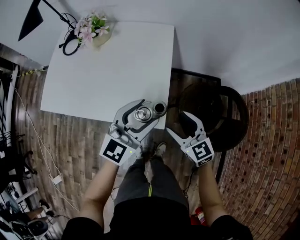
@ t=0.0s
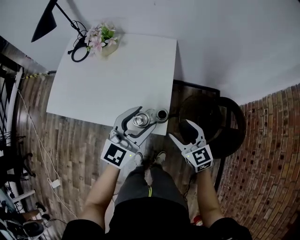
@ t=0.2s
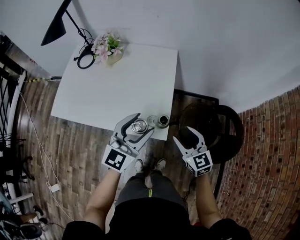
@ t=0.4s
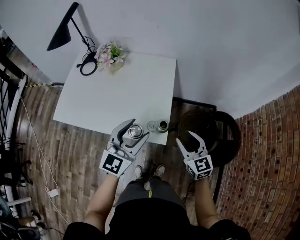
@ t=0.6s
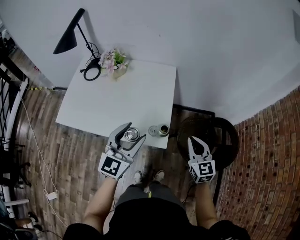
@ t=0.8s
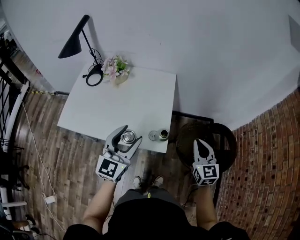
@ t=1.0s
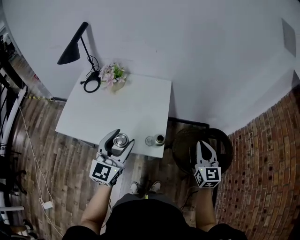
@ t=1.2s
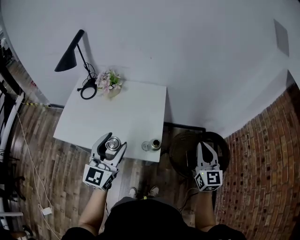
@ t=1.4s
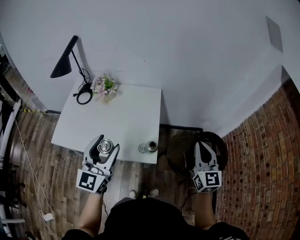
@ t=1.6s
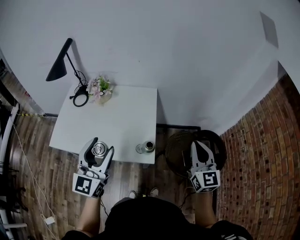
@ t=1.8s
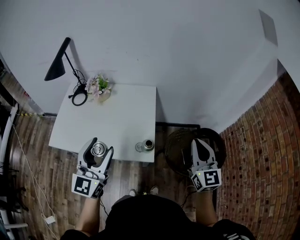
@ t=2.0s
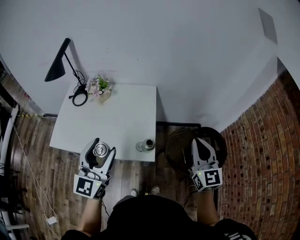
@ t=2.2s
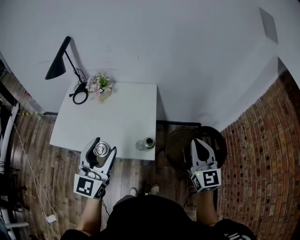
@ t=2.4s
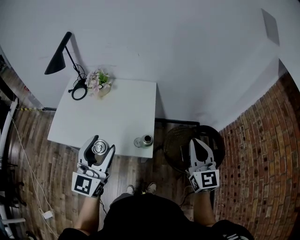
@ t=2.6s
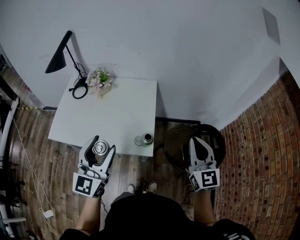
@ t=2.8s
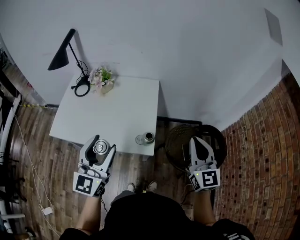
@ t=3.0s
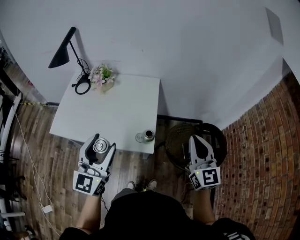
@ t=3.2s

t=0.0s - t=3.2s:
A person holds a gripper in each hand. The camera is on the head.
t=0.0s - t=1.6s: The left gripper goes approximately 20 cm upward and to the left, and rotates approximately 20 degrees; the right gripper shifts some 25 cm upward and to the right, turns by approximately 40 degrees, and closes its fingers.
t=1.6s - t=3.2s: The grippers make only small movements.

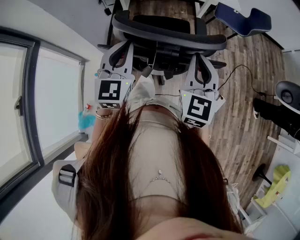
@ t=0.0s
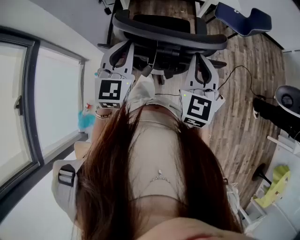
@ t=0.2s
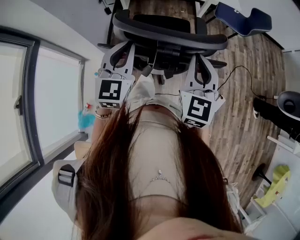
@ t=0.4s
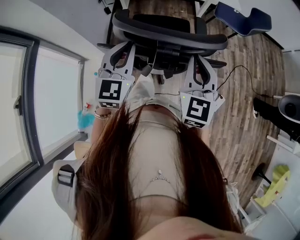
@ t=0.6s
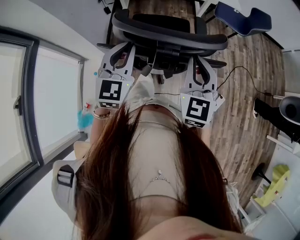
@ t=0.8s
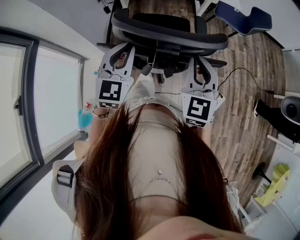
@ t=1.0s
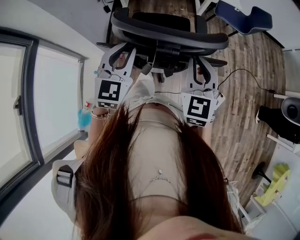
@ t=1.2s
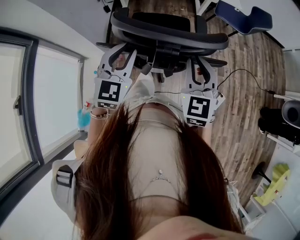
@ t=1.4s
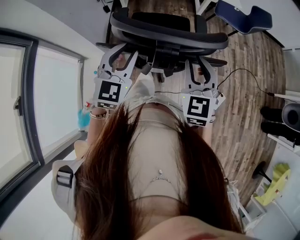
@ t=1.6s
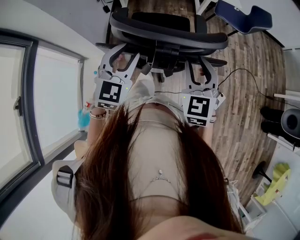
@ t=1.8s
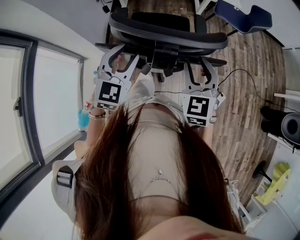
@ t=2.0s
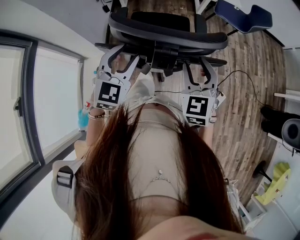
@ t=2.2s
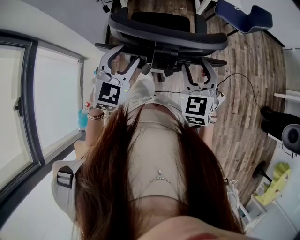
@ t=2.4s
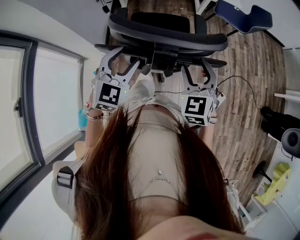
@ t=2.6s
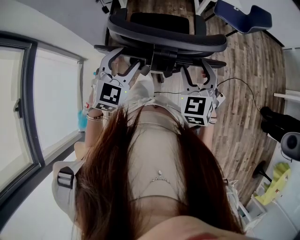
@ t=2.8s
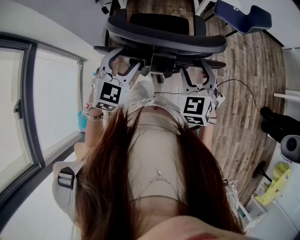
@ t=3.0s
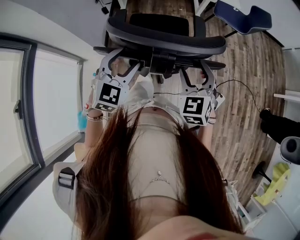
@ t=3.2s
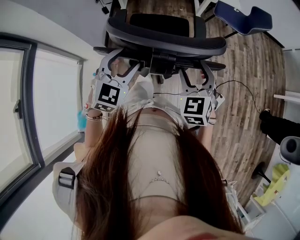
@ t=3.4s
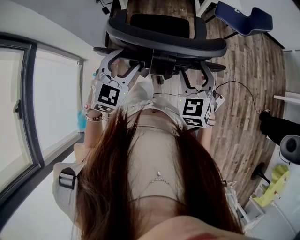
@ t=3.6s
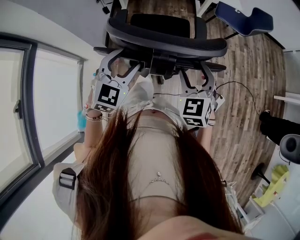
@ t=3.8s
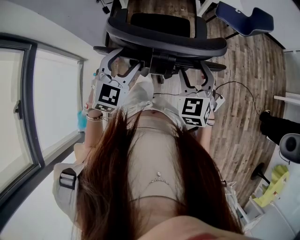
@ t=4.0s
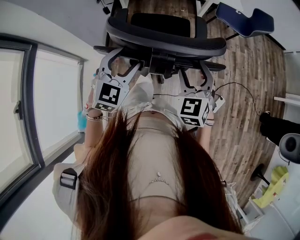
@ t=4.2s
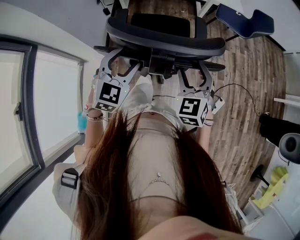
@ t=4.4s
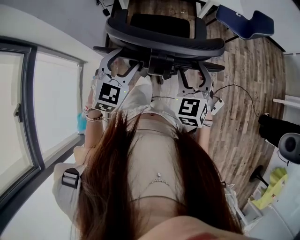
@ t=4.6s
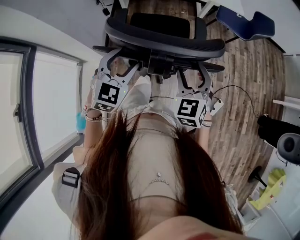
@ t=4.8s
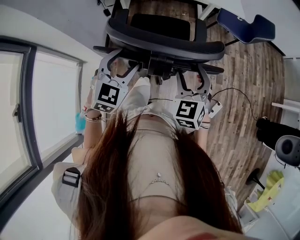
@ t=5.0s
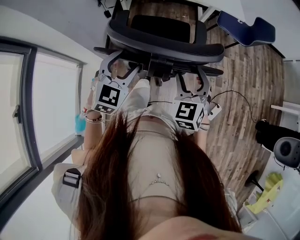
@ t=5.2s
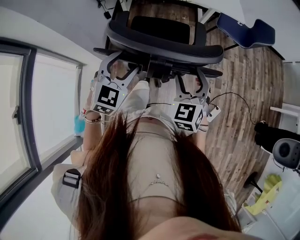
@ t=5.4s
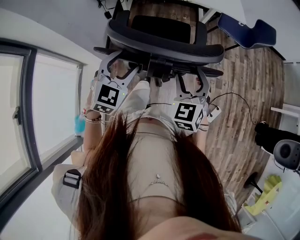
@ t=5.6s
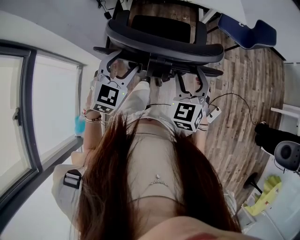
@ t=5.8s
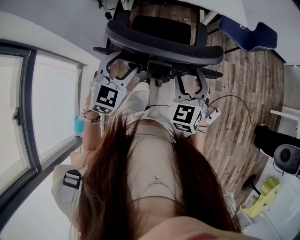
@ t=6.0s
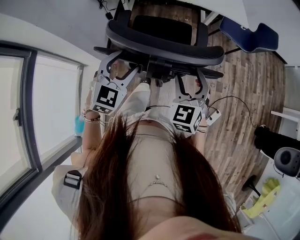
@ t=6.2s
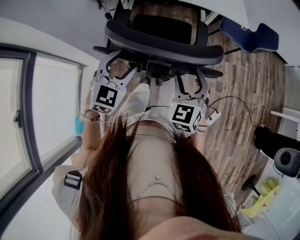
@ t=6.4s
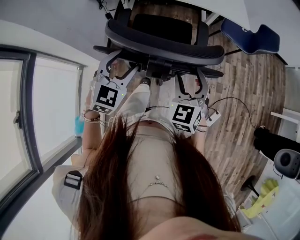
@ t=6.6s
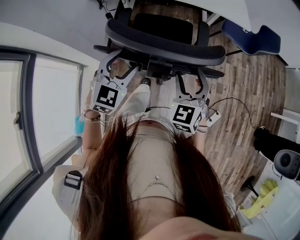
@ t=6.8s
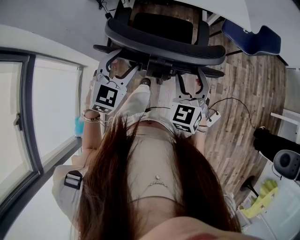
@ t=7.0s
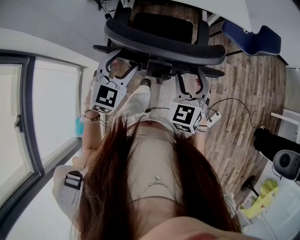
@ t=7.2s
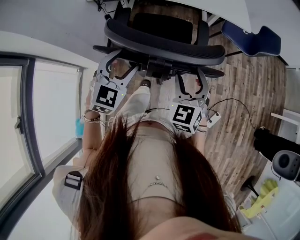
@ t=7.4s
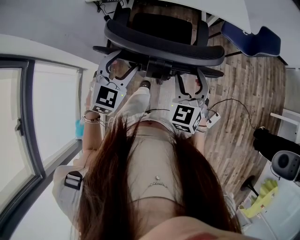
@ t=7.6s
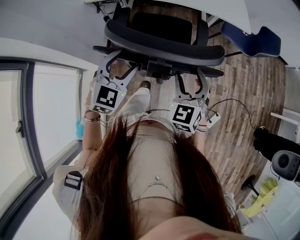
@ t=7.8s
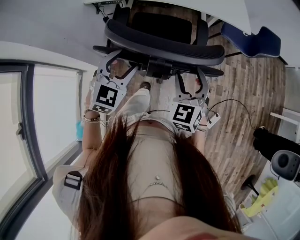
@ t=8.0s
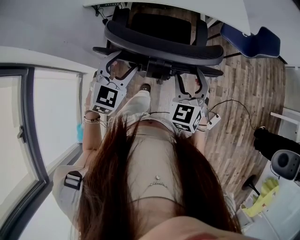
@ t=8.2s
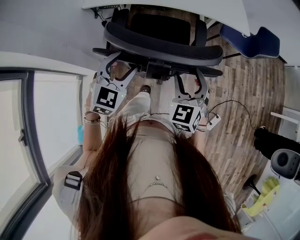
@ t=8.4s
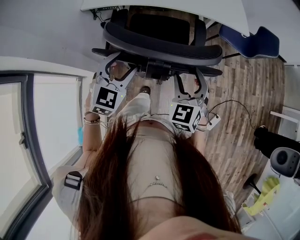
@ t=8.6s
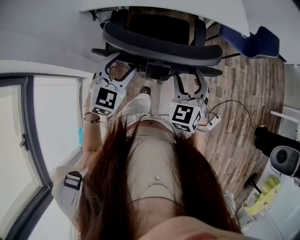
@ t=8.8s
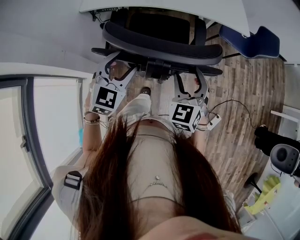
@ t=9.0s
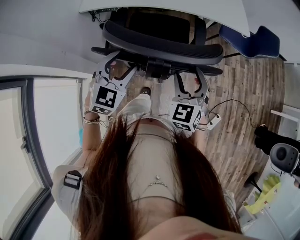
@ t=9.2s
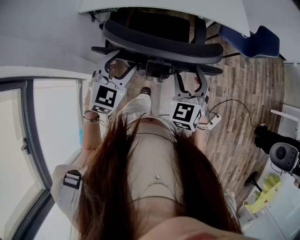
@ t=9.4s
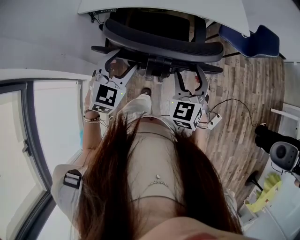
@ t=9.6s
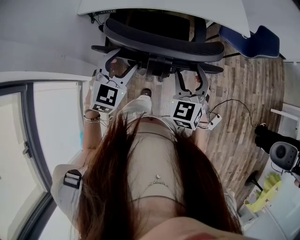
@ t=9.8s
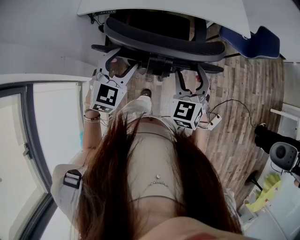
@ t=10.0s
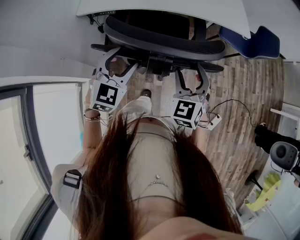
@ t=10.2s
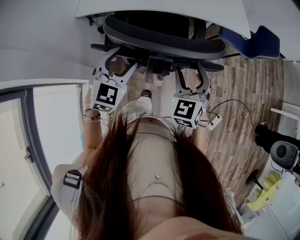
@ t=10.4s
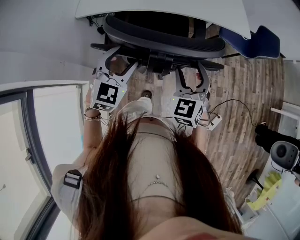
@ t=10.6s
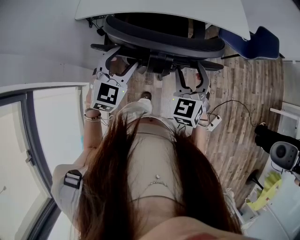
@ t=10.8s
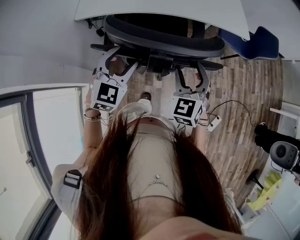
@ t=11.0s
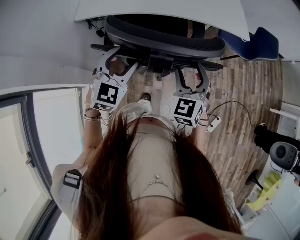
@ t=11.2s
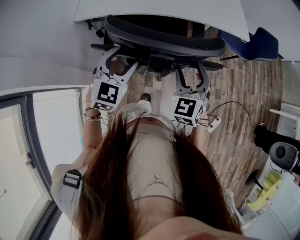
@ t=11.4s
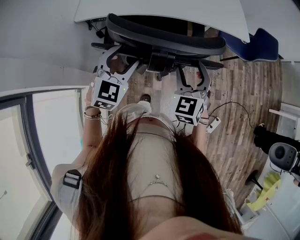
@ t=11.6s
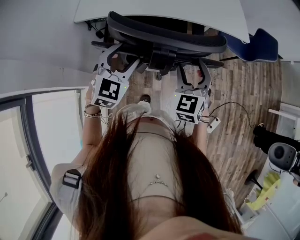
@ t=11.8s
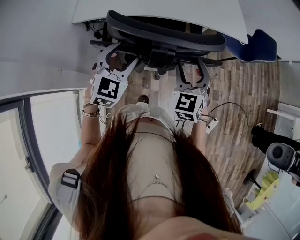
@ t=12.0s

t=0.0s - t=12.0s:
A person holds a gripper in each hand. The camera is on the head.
t=0.0s - t=1.6s: The grippers make only small movements.
t=1.6s - t=3.0s: The right gripper opens. Meanwhile the left gripper opens up.
t=3.0s - t=4.4s: The grippers make only small movements.
t=4.4s - t=6.0s: The two grippers go about 5 cm forward.
t=6.0s - t=7.6s: Both grippers travel together forward, roughly 5 cm.
t=7.6s - t=9.0s: Both grippers travel together forward, some 5 cm.
t=9.0s - t=10.4s: Both grippers move forward, about 5 cm.
t=10.4s - t=12.0s: Both grippers move forward, roughly 5 cm.

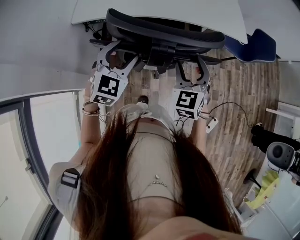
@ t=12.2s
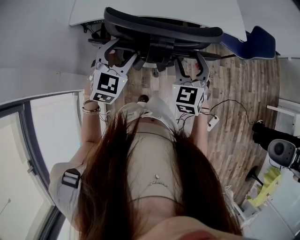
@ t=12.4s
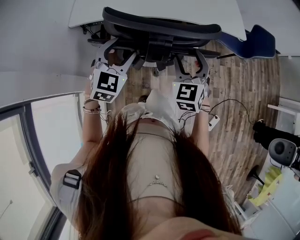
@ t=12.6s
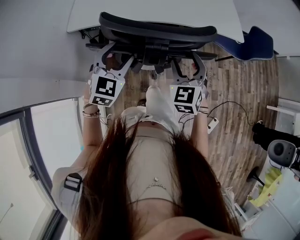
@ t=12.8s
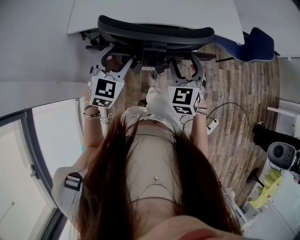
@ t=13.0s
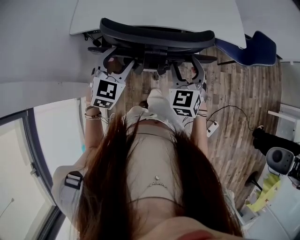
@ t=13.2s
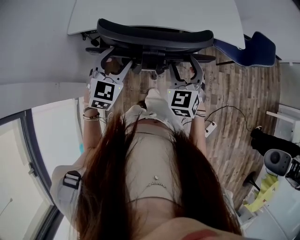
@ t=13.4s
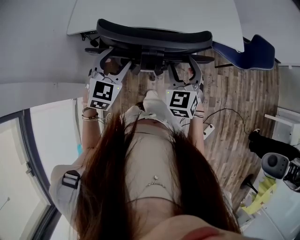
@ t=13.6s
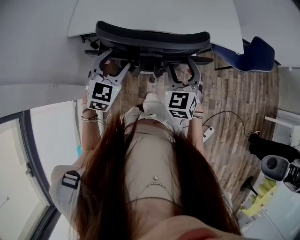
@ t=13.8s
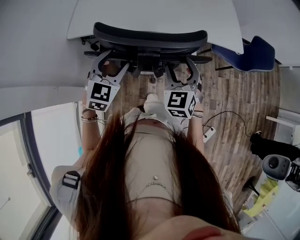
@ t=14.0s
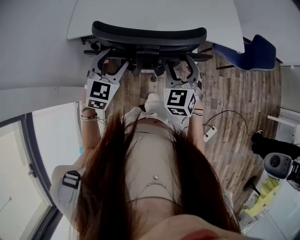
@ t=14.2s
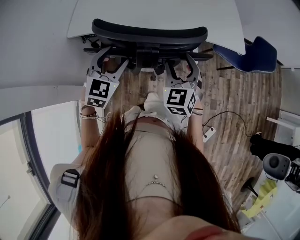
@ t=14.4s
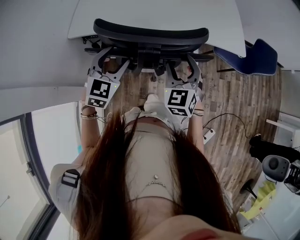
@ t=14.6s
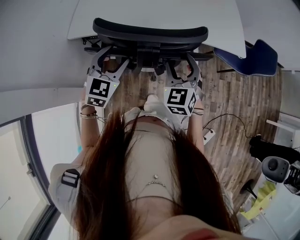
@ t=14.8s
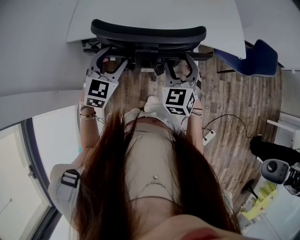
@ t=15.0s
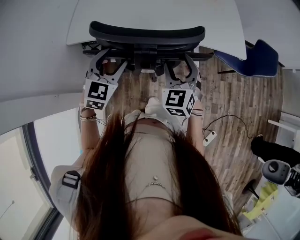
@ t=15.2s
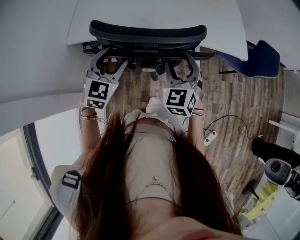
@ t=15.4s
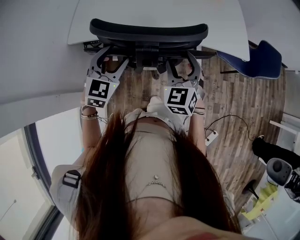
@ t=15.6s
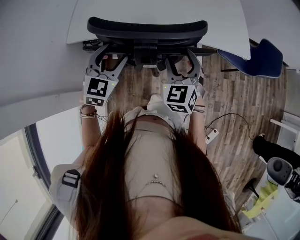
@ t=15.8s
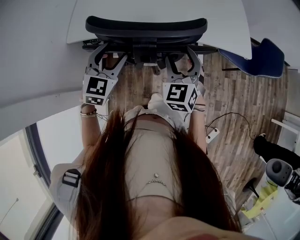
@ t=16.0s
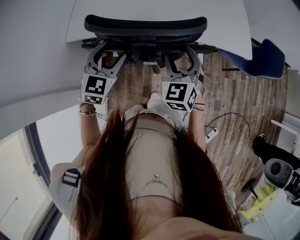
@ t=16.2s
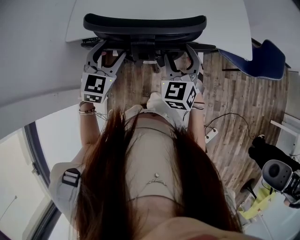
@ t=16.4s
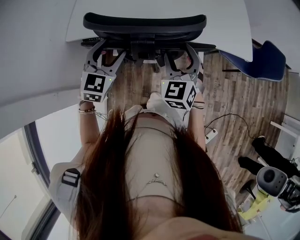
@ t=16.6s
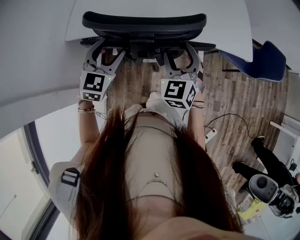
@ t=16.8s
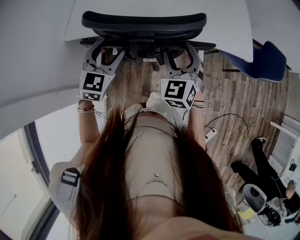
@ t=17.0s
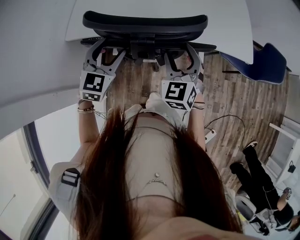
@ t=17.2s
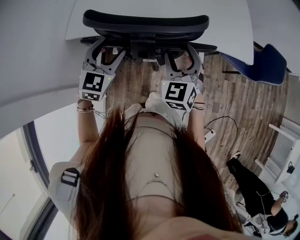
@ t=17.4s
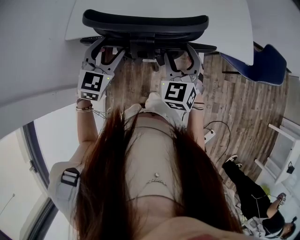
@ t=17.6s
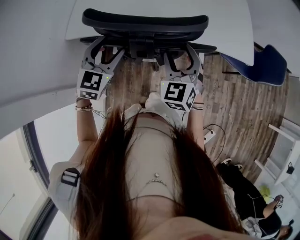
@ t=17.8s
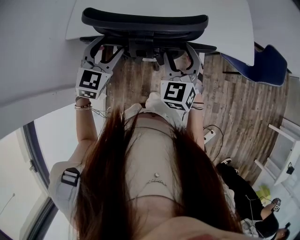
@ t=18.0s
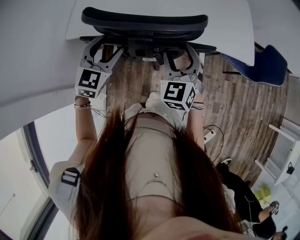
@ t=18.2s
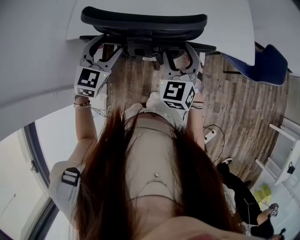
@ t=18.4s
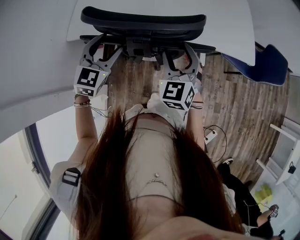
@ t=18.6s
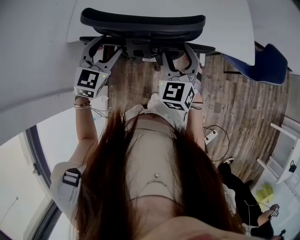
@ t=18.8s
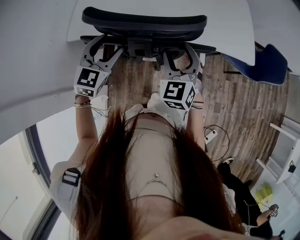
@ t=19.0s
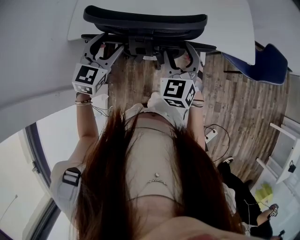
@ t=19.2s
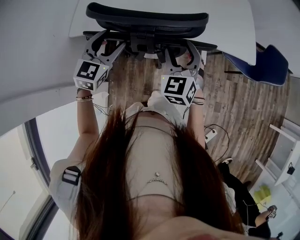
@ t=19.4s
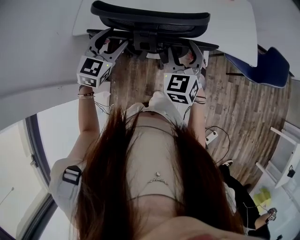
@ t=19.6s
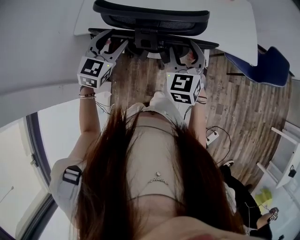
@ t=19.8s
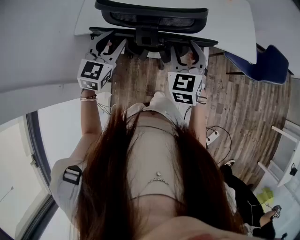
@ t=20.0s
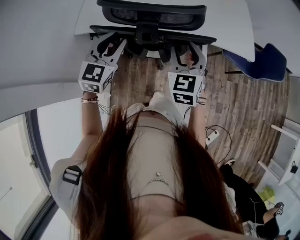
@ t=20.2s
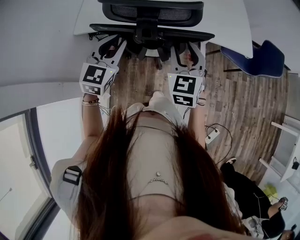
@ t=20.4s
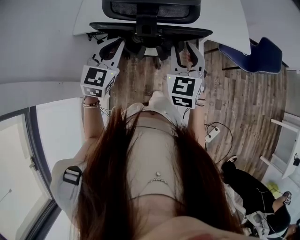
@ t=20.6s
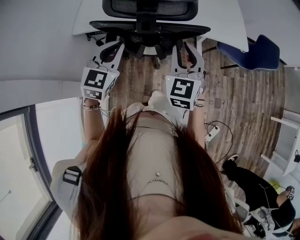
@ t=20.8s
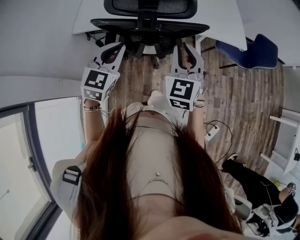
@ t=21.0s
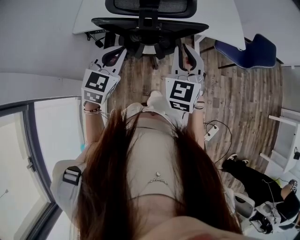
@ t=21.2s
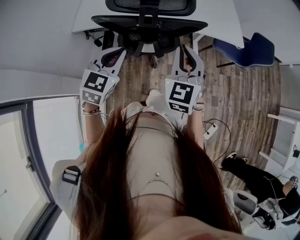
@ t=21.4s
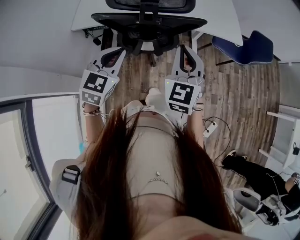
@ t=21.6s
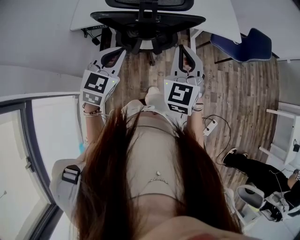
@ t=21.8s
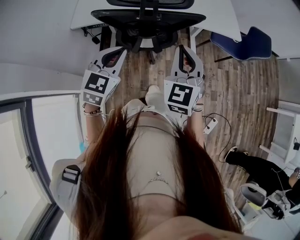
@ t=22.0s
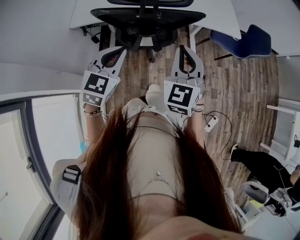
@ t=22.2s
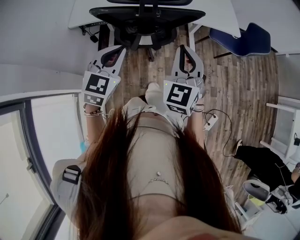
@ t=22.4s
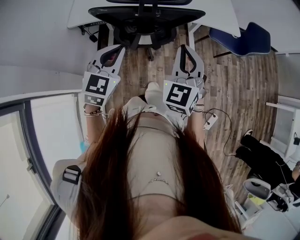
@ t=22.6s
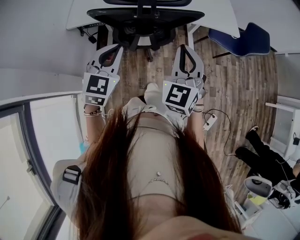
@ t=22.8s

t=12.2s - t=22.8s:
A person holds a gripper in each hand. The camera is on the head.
t=12.2s - t=13.8s: The two grippers go approximately 5 cm forward.
t=13.8s - t=15.2s: The grippers both shift forward by about 5 cm.
t=15.2s - t=18.2s: The grippers stay close to where they were, moving slightly.
t=18.2s - t=19.8s: The grippers make only small movements.
t=19.8s - t=21.2s: The right gripper travels backward and upward by about 15 cm, and closes its fingers; the left gripper shifts about 15 cm backward, and closes.
t=21.2s - t=22.8s: The right gripper moves backward, approximately 5 cm.
